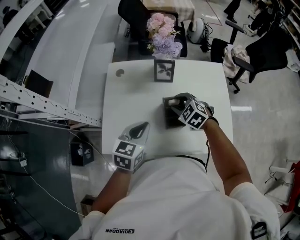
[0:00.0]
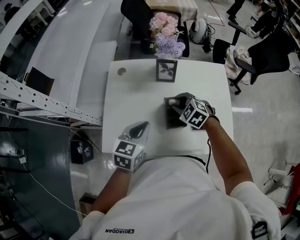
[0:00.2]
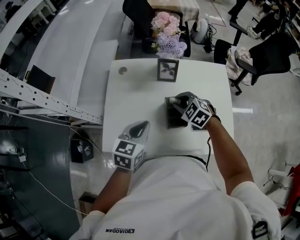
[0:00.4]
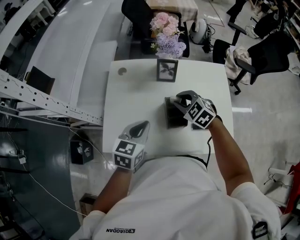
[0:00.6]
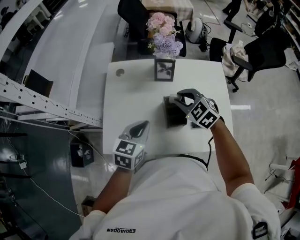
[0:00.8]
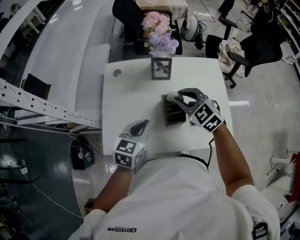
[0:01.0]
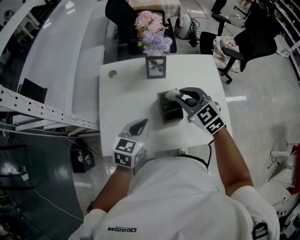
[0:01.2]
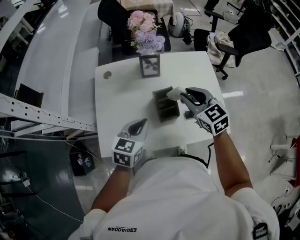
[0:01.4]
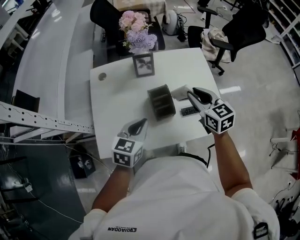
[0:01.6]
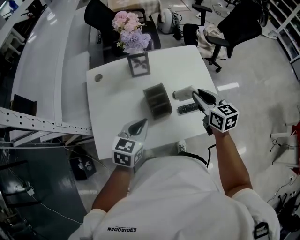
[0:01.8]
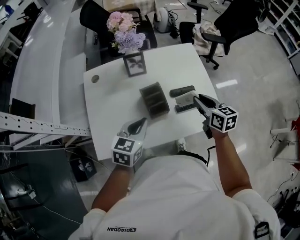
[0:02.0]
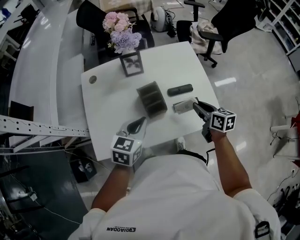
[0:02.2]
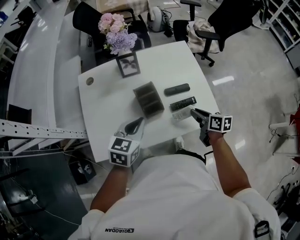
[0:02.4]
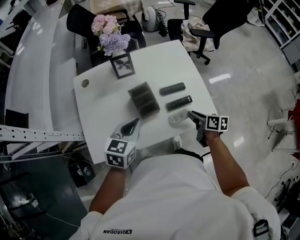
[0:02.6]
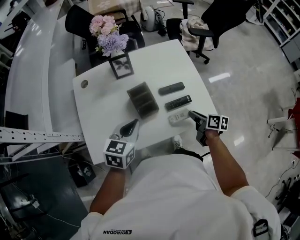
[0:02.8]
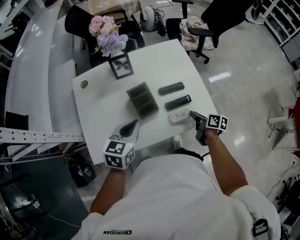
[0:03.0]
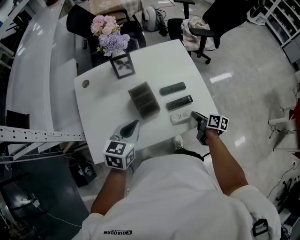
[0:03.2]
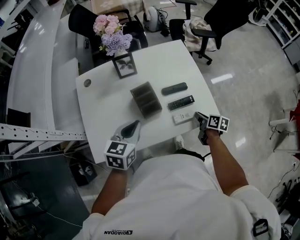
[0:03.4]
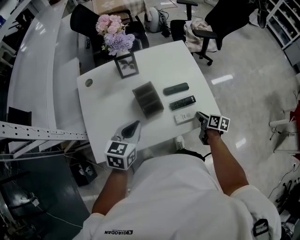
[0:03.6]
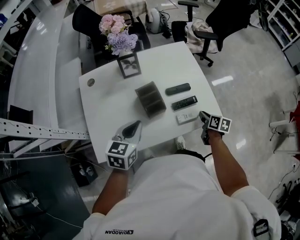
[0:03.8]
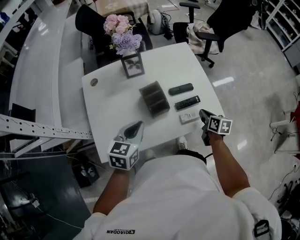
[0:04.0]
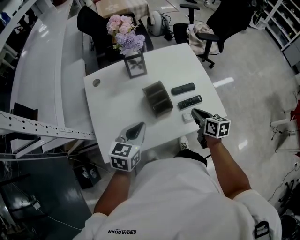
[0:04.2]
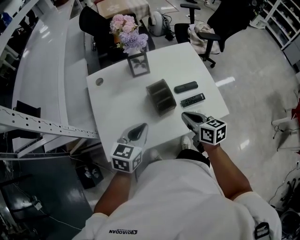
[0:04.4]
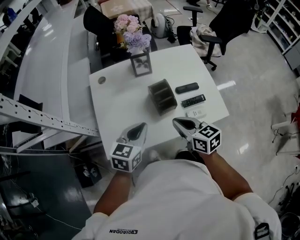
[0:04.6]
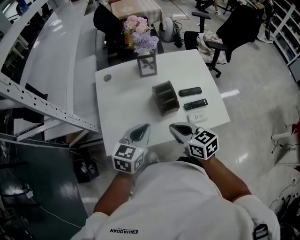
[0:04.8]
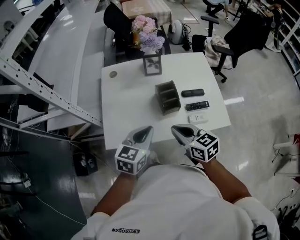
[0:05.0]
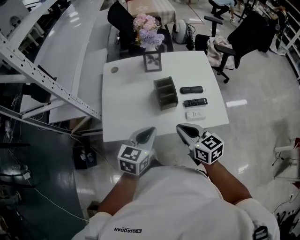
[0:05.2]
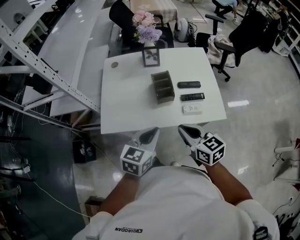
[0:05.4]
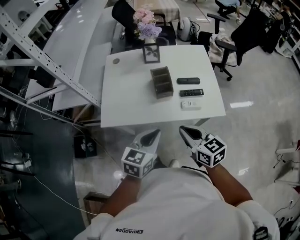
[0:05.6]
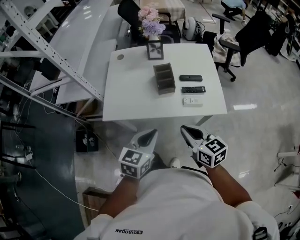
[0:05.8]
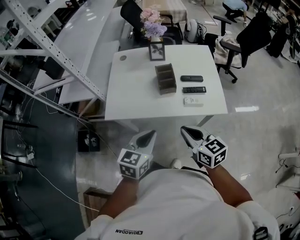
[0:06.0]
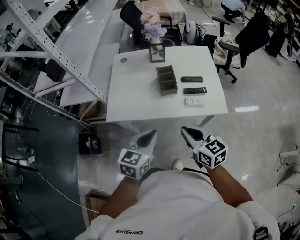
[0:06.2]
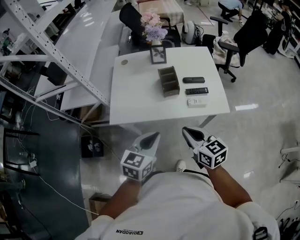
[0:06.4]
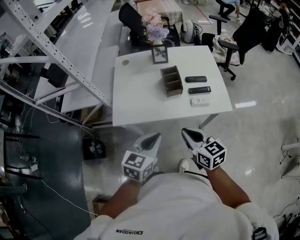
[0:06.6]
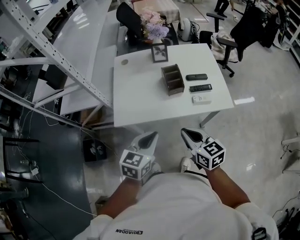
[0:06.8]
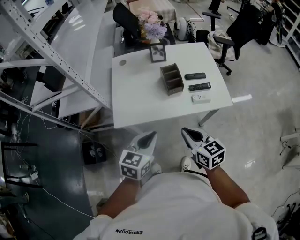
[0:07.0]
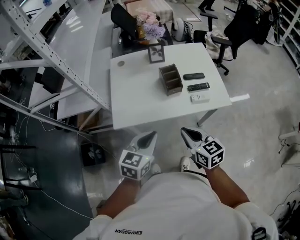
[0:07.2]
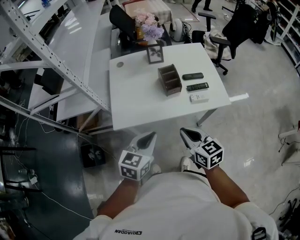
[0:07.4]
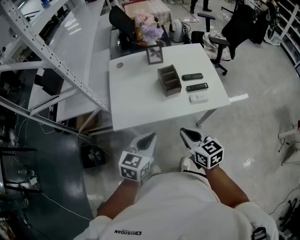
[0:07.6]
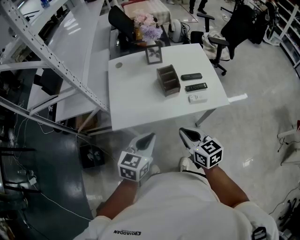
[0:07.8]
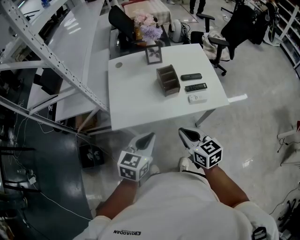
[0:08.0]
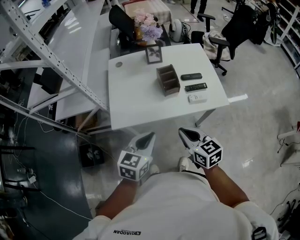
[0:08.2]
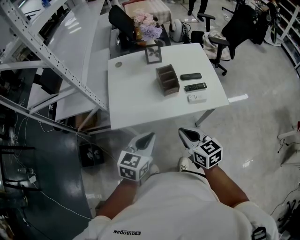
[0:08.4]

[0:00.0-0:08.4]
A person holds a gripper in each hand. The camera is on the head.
0:00.0 to 0:01.4: The right gripper shifts some 15 cm upward and to the right, and rotates some 30 degrees.
0:01.4 to 0:02.8: The left gripper goes about 5 cm to the right. Meanwhile the right gripper heads to the right, downward and backward, covering some 30 cm, and rolls clockwise, seen from behind, by some 70 degrees.
0:02.8 to 0:04.2: The left gripper moves to the left, roughly 5 cm. Meanwhile the right gripper moves to the left and upward, about 10 cm, rotates roughly 20 degrees, and closes its fingers.
0:04.2 to 0:05.6: The left gripper shifts roughly 20 cm backward and to the right. The right gripper moves backward and upward, about 20 cm, and rotates some 40 degrees.
0:05.6 to 0:07.0: Both grippers move to the left, approximately 10 cm.
0:07.0 to 0:08.4: Both grippers stay put.

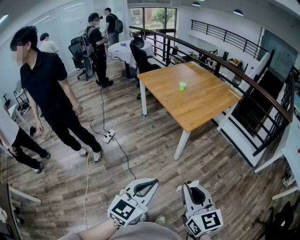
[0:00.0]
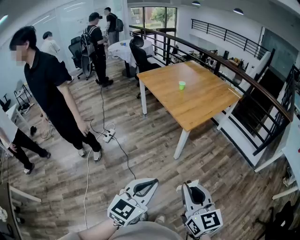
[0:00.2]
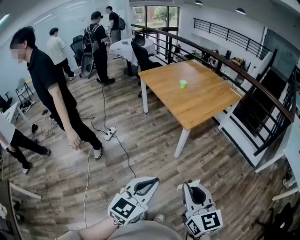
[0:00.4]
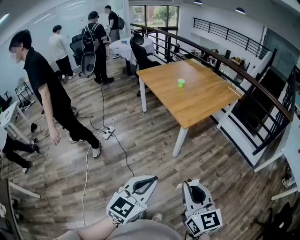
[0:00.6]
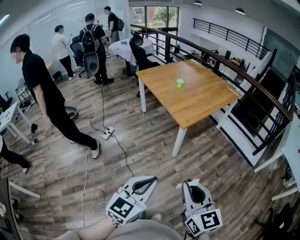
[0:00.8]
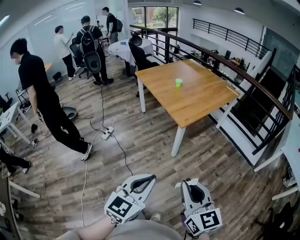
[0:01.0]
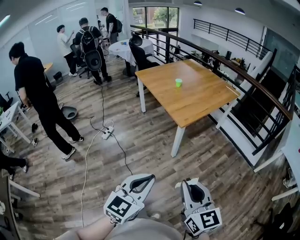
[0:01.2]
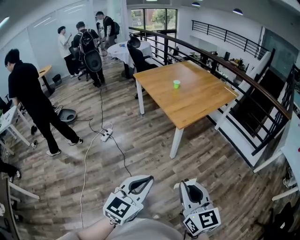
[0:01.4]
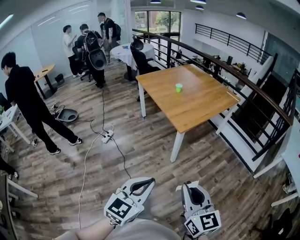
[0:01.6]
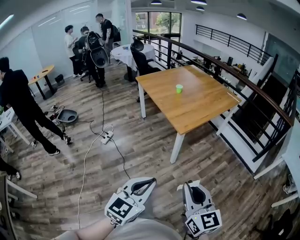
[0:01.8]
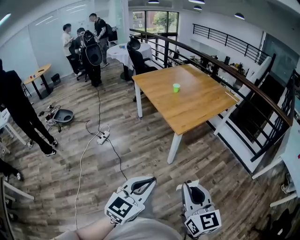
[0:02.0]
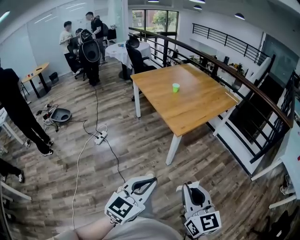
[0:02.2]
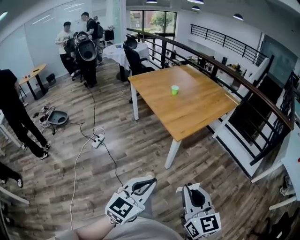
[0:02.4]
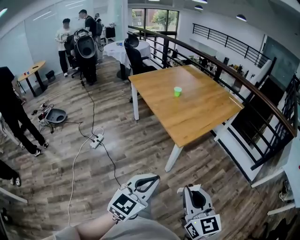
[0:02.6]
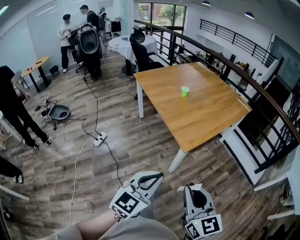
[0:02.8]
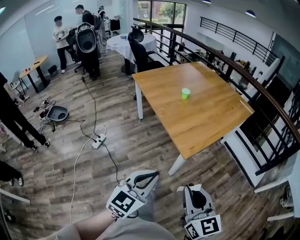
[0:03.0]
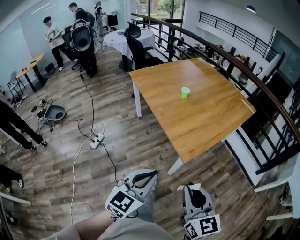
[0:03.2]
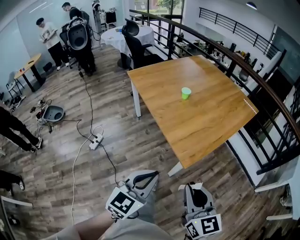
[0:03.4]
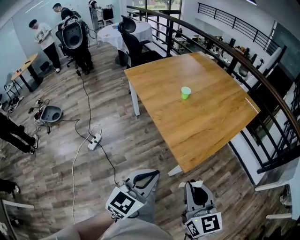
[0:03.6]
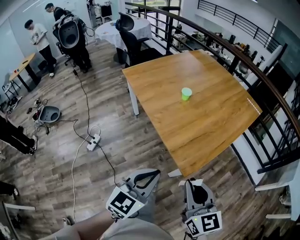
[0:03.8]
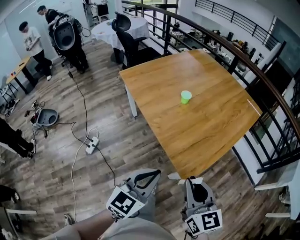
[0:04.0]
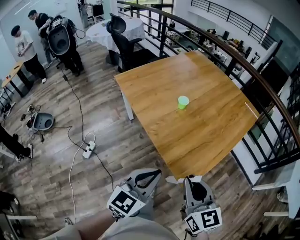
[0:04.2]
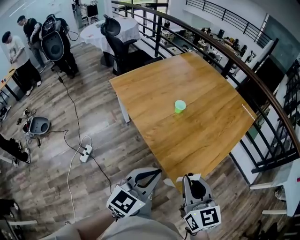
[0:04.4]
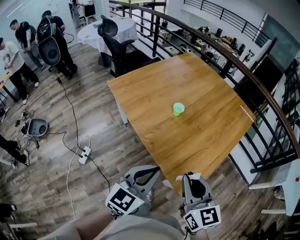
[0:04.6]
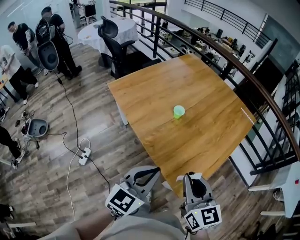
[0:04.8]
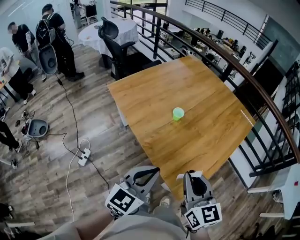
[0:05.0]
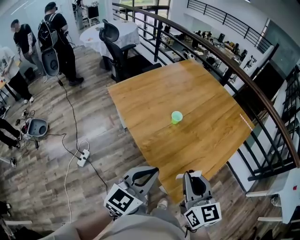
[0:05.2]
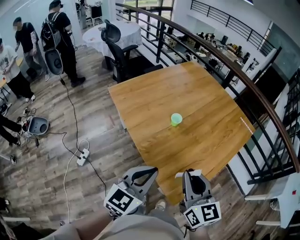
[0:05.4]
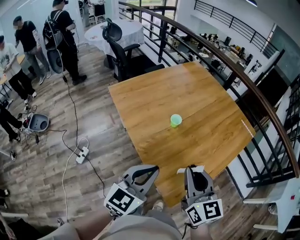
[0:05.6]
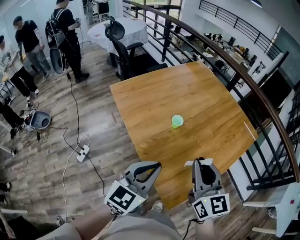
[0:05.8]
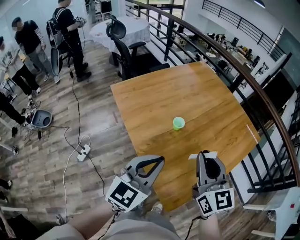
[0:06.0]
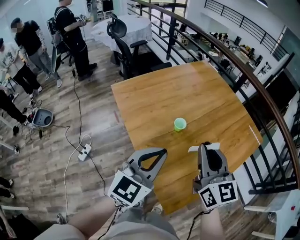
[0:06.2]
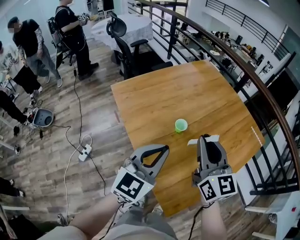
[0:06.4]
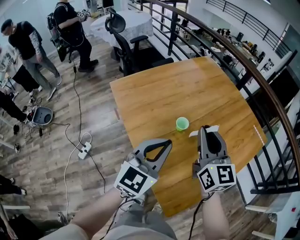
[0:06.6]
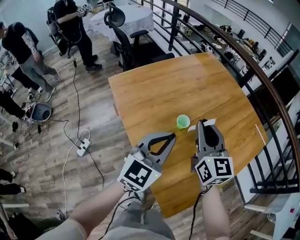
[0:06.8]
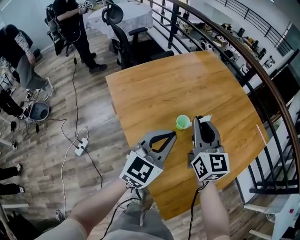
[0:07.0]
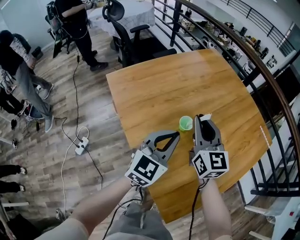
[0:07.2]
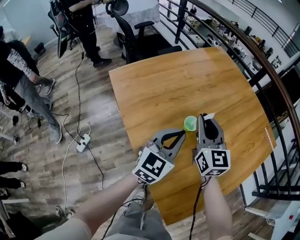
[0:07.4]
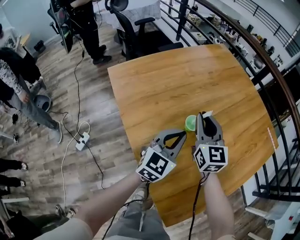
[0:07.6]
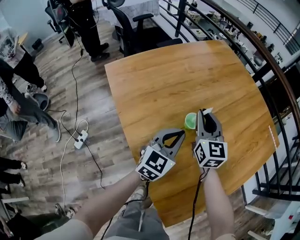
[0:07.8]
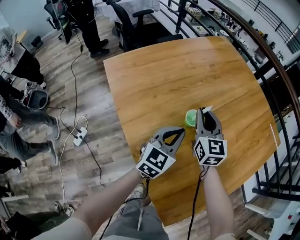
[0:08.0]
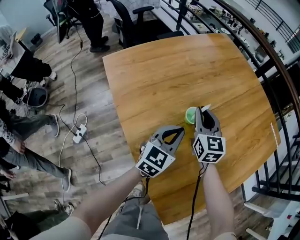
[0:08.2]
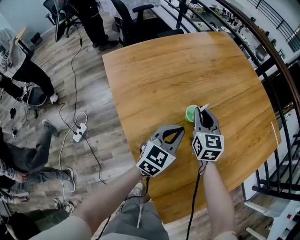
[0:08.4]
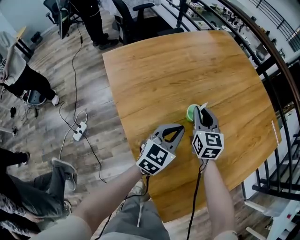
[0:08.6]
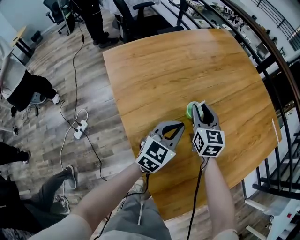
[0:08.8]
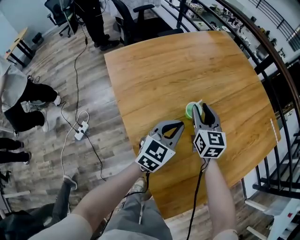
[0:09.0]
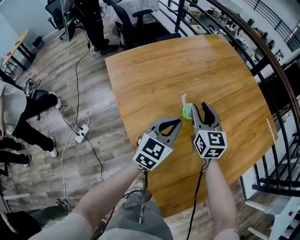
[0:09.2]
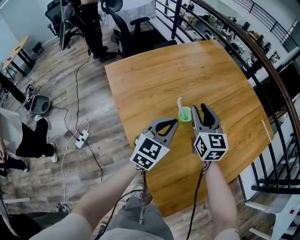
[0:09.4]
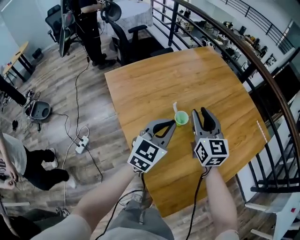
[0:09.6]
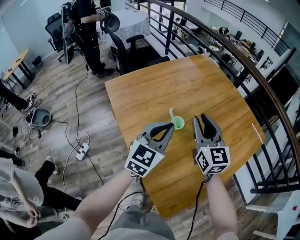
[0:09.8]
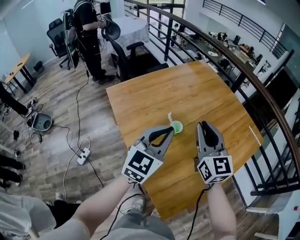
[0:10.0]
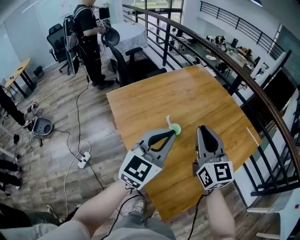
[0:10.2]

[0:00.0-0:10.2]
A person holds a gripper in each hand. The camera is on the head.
0:00.0 to 0:01.4: The two grippers go some 5 cm to the right.
0:01.4 to 0:03.0: The grippers both shift forward by approximately 30 cm.
0:03.0 to 0:04.4: Both grippers move forward, about 35 cm.
0:04.4 to 0:05.8: The two grippers go about 15 cm forward and upward.
0:05.8 to 0:07.2: The two grippers go roughly 25 cm forward and downward.
0:07.2 to 0:08.8: The two grippers go about 15 cm downward.
0:08.8 to 0:10.2: The left gripper moves upward, roughly 30 cm, while the right gripper goes some 35 cm upward and backward, and turns by about 20 degrees.

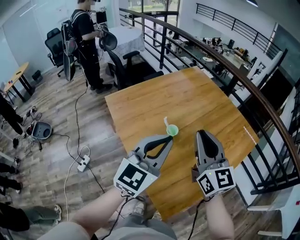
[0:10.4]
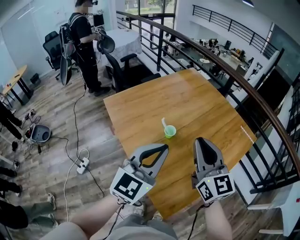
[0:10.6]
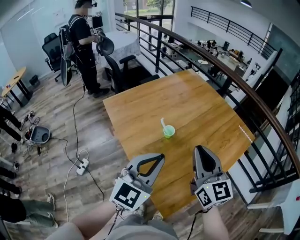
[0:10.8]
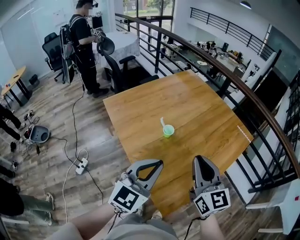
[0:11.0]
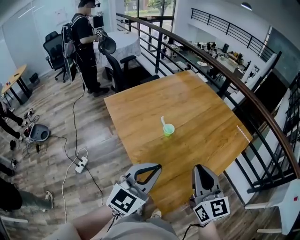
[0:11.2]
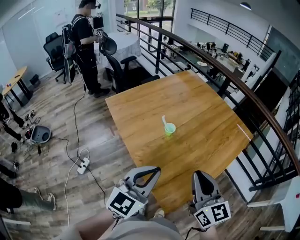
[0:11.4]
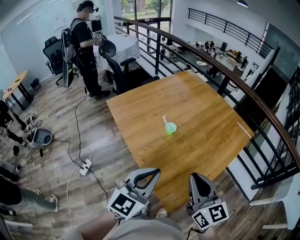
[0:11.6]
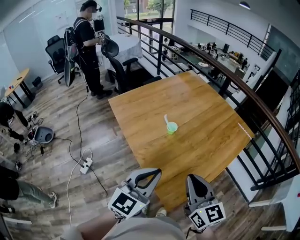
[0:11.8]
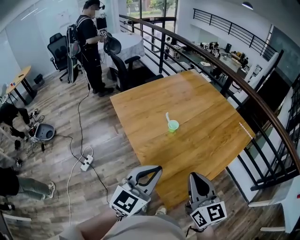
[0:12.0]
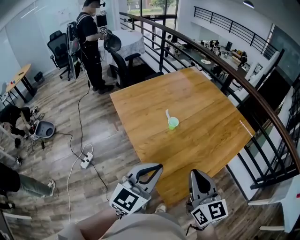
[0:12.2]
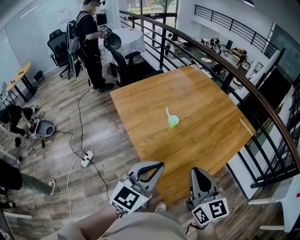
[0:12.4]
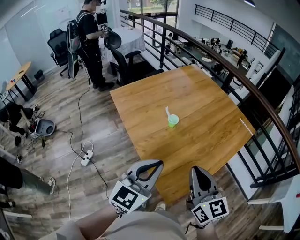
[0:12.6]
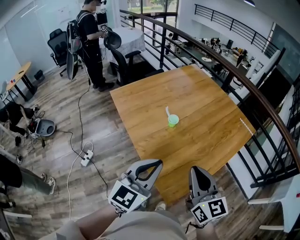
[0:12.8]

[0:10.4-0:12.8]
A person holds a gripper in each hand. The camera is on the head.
0:10.4 to 0:11.6: Both grippers travel together backward, about 20 cm.
0:11.6 to 0:12.8: The grippers stay close to where they were, moving slightly.

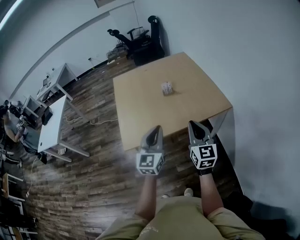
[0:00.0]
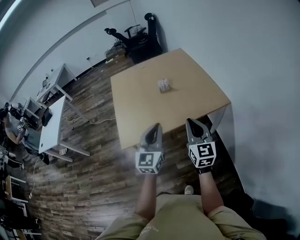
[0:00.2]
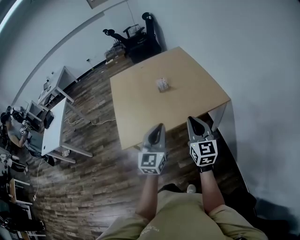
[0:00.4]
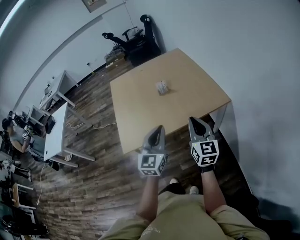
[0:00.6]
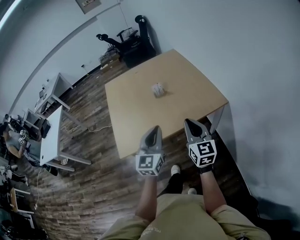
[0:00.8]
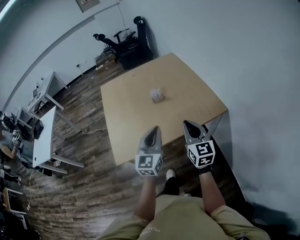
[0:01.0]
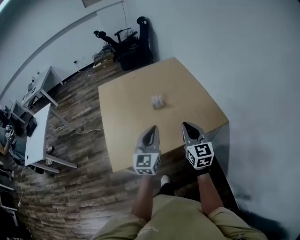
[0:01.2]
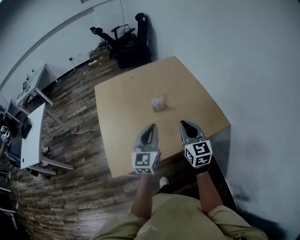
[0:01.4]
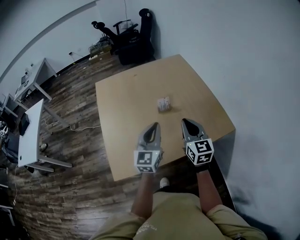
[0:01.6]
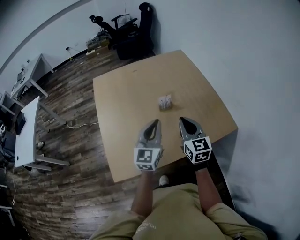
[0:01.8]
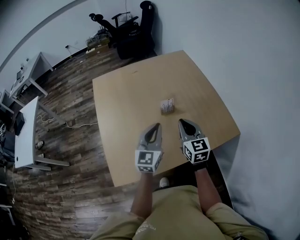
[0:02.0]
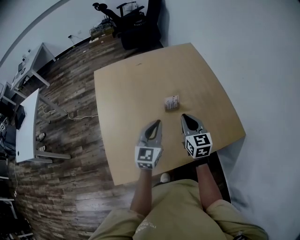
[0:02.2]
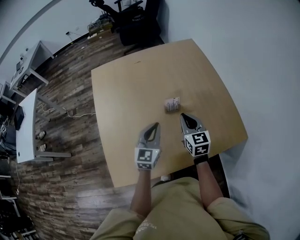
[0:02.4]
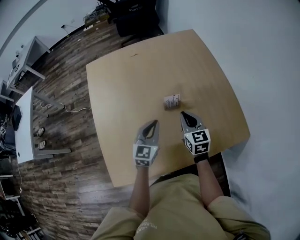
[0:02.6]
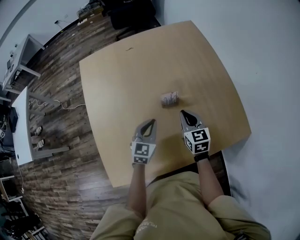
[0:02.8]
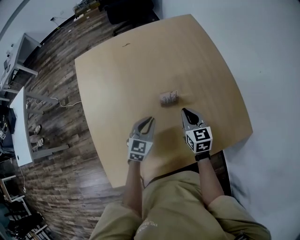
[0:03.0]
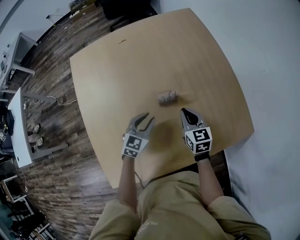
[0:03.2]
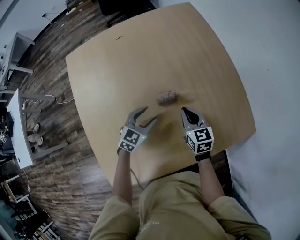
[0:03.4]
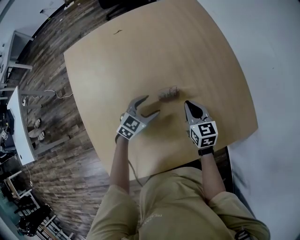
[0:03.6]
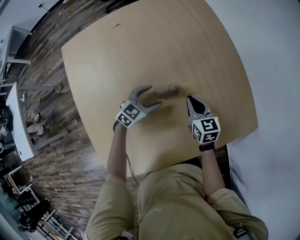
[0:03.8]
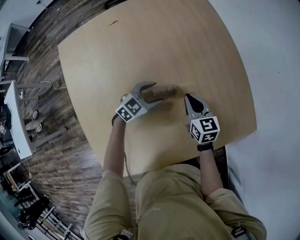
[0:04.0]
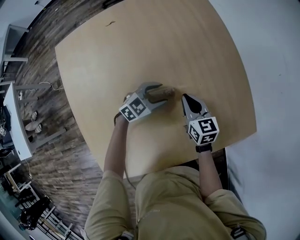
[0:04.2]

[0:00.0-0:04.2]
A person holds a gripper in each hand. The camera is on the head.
0:00.0 to 0:01.4: The grippers both shift forward by some 25 cm.
0:01.4 to 0:02.8: The two grippers go about 35 cm forward and downward. The left gripper rotates about 30 degrees. The right gripper swivels some 20 degrees.
0:02.8 to 0:04.2: The left gripper heads forward, downward and to the right, covering about 20 cm, changes its angle by roughly 50 degrees, and opens; the right gripper travels downward and forward by about 15 cm.
